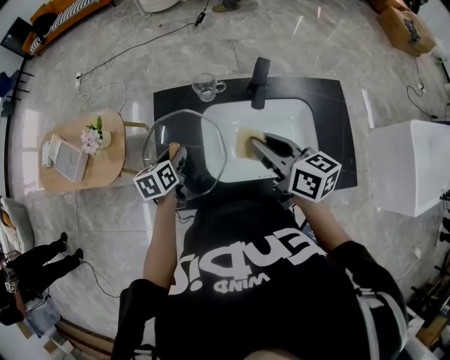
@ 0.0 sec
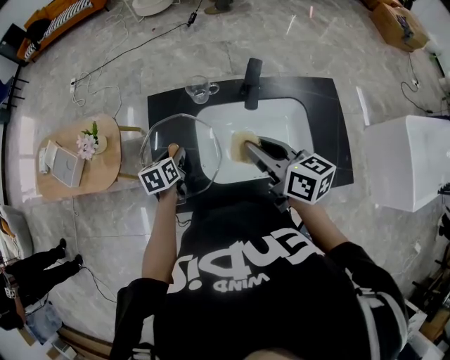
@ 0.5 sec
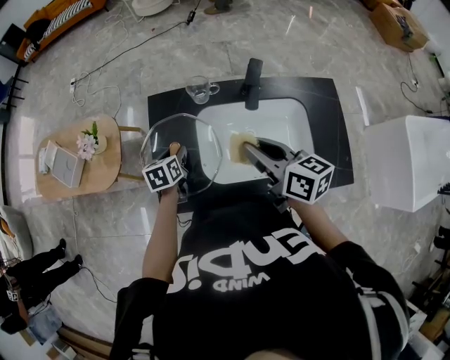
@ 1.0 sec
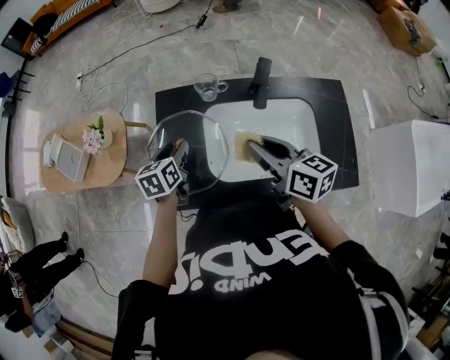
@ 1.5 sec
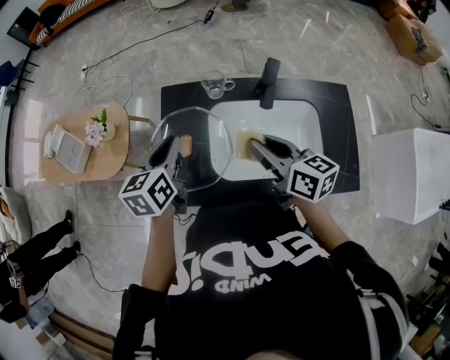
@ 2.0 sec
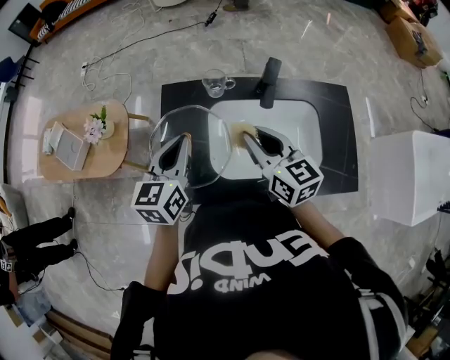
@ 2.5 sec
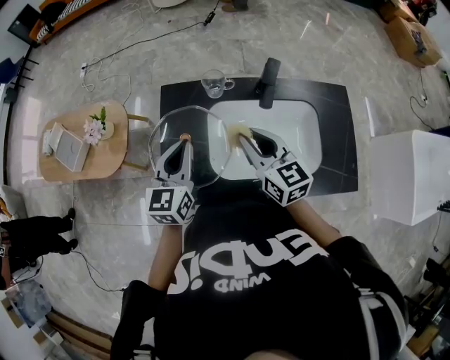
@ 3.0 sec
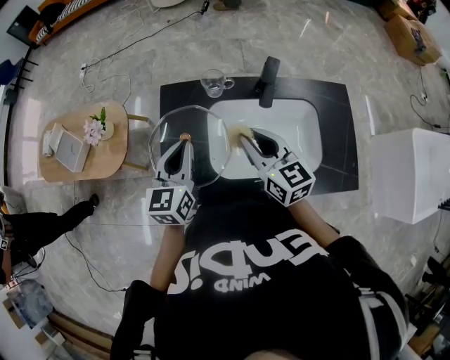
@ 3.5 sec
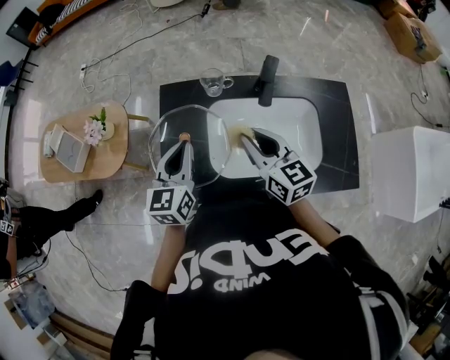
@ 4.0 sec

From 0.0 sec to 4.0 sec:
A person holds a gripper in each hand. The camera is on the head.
From 0.0 sec to 2.0 sec: The left gripper heads upward, covering roughly 15 cm, and closes up.
From 2.0 sec to 4.0 sec: The right gripper swivels roughly 20 degrees.

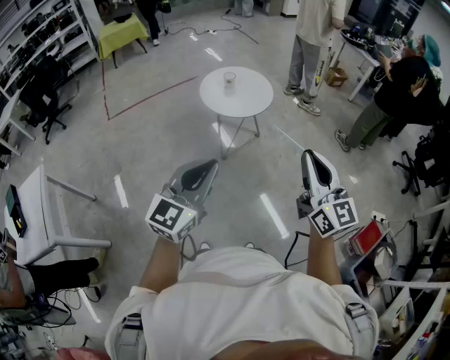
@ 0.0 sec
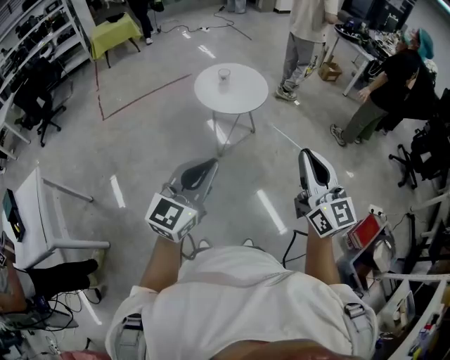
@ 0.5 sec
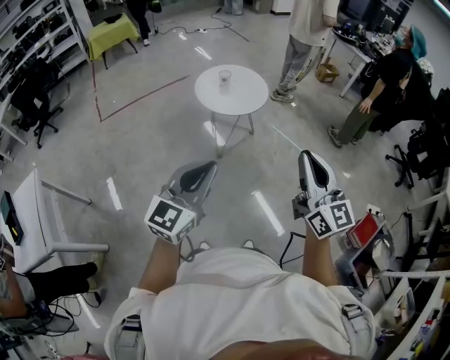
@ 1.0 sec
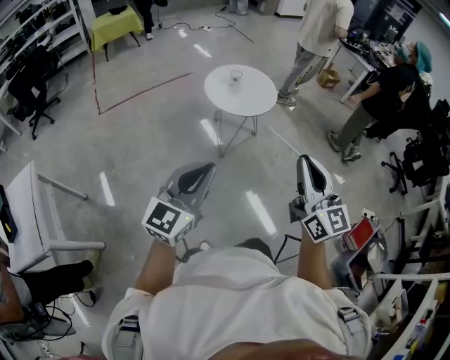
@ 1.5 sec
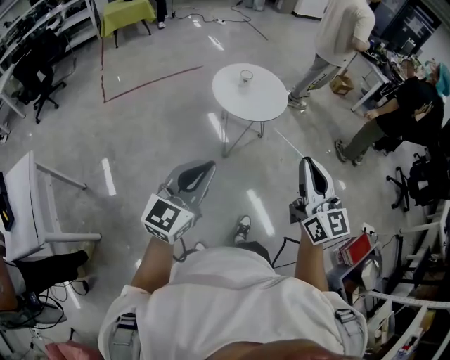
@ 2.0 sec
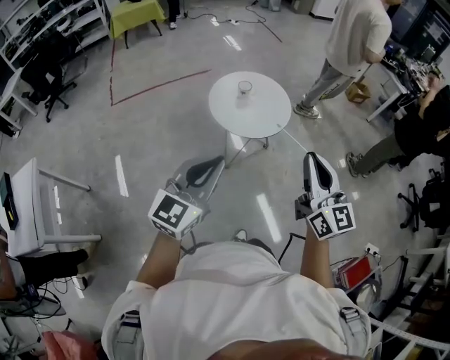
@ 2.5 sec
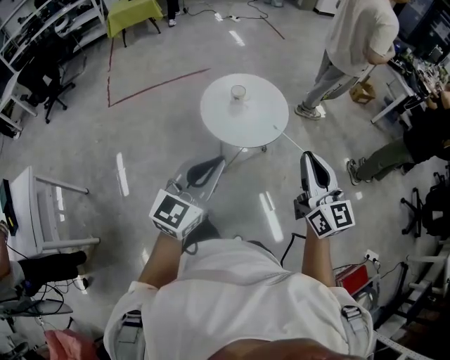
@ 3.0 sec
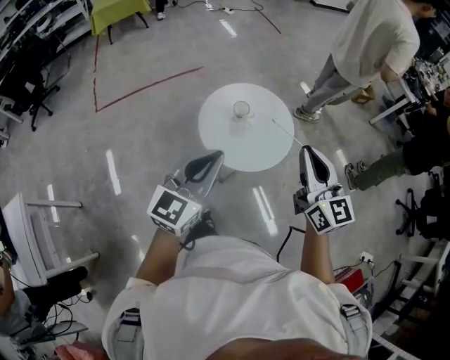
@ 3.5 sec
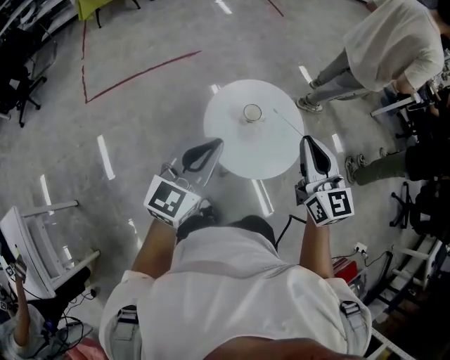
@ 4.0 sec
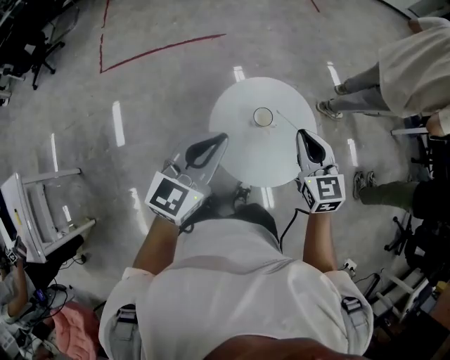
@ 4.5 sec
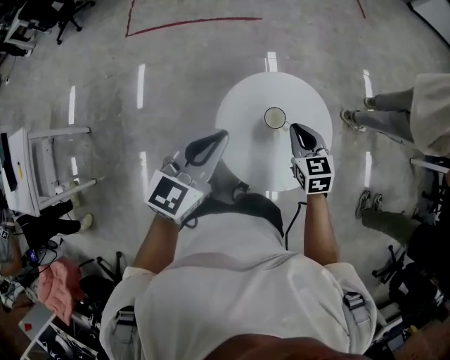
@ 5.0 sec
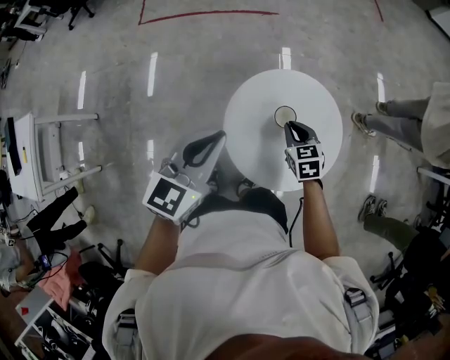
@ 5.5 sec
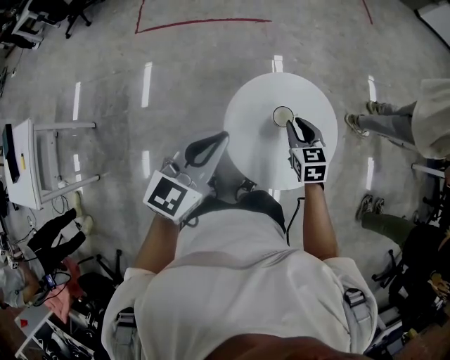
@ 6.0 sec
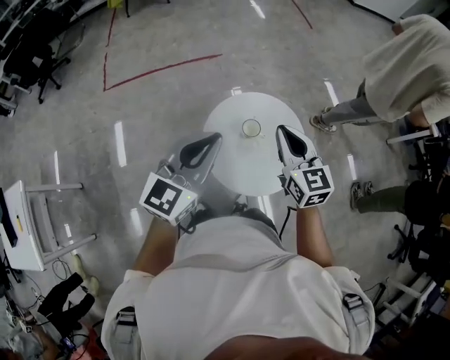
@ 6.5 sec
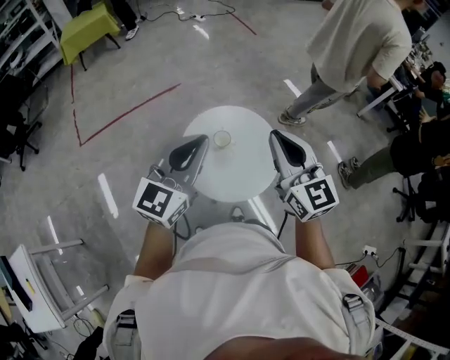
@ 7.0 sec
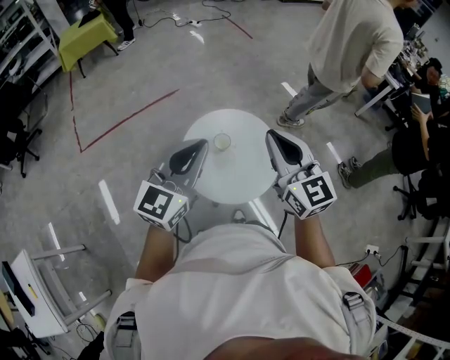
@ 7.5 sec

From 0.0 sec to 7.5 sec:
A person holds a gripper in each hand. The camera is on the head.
From 0.0 sec to 2.0 sec: Both grippers move to the left and forward, approximately 15 cm.
From 2.0 sec to 4.0 sec: The pair of grippers is taken forward, roughly 60 cm.
From 4.0 sec to 5.5 sec: The left gripper moves some 15 cm, and swivels approximately 30 degrees. The right gripper is displaced downward by some 30 cm, and angles its fingers downward, by about 40 degrees.
From 5.5 sec to 7.5 sec: The left gripper goes roughly 15 cm upward, and swivels about 40 degrees. Meanwhile the right gripper heads upward, covering about 40 cm, and angles its fingers upward, by approximately 40 degrees.

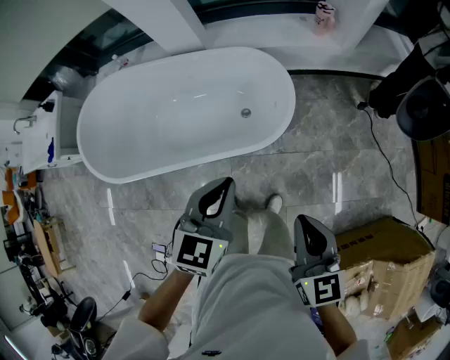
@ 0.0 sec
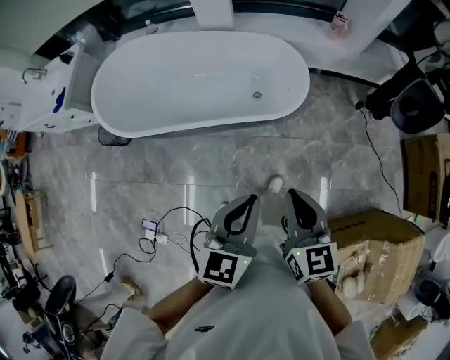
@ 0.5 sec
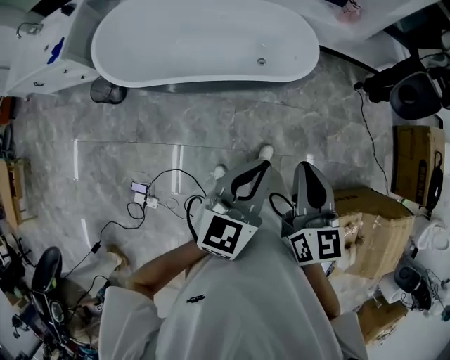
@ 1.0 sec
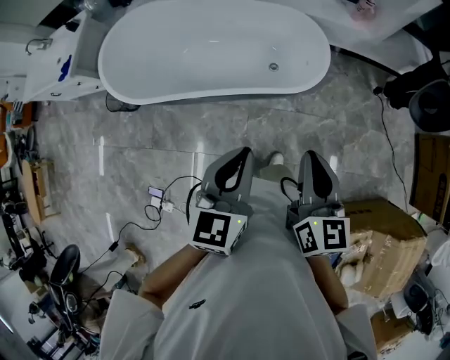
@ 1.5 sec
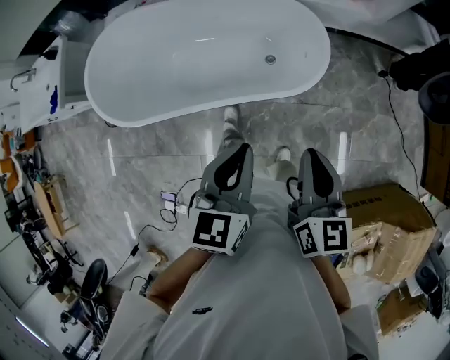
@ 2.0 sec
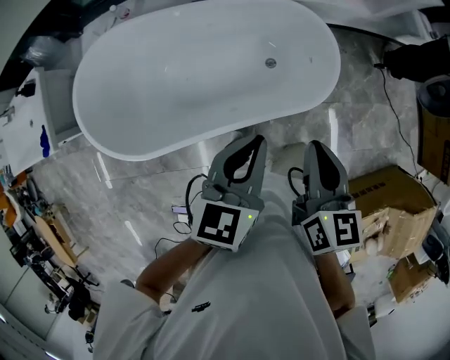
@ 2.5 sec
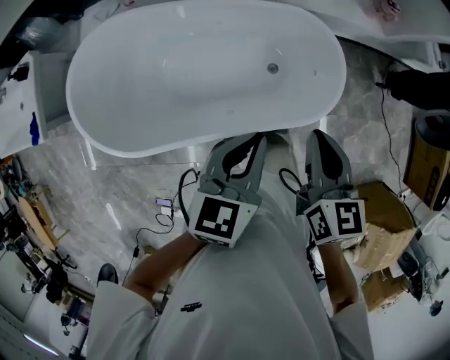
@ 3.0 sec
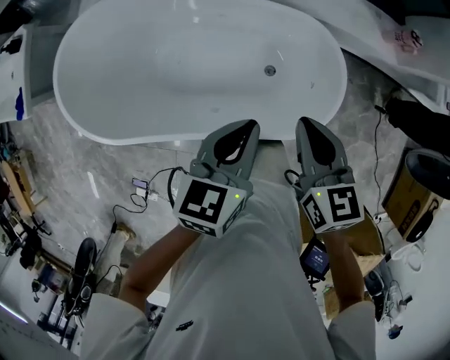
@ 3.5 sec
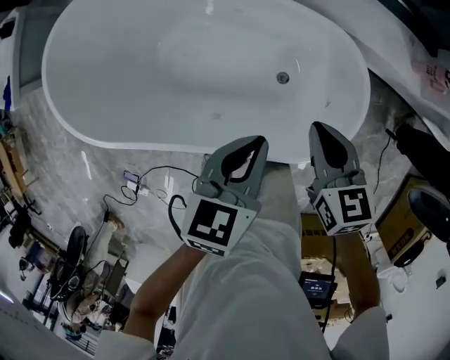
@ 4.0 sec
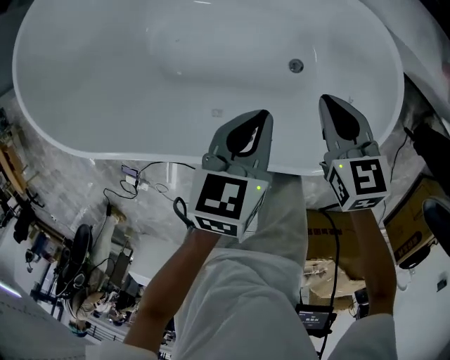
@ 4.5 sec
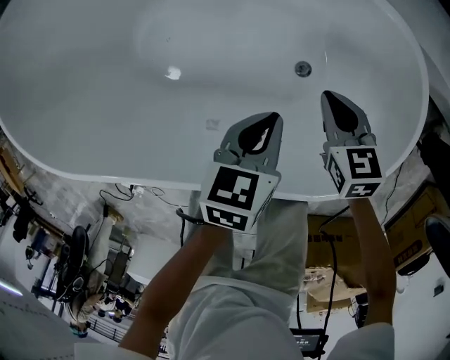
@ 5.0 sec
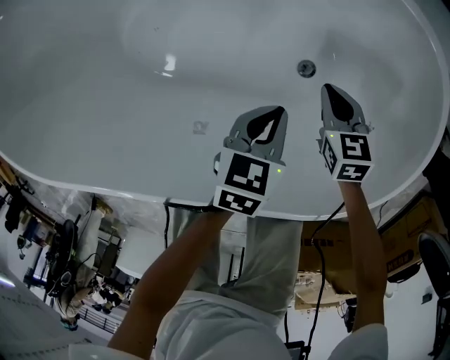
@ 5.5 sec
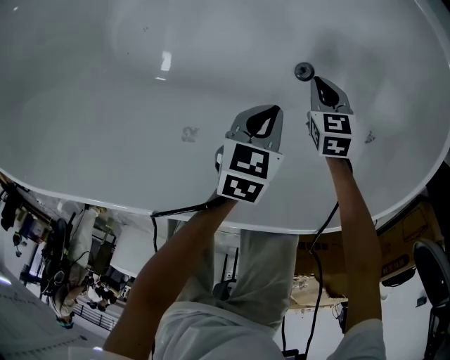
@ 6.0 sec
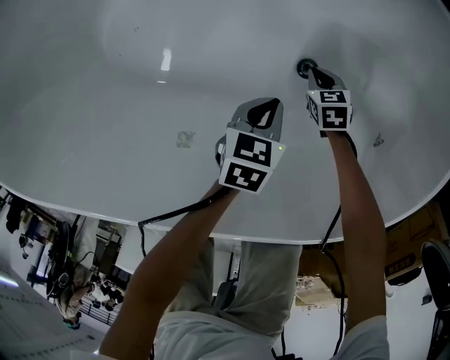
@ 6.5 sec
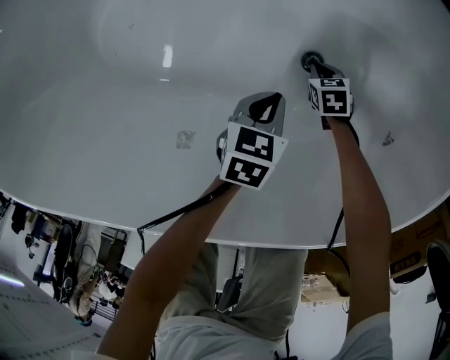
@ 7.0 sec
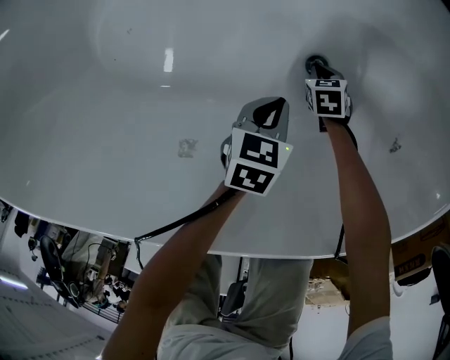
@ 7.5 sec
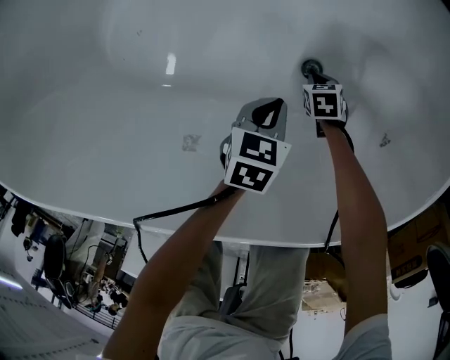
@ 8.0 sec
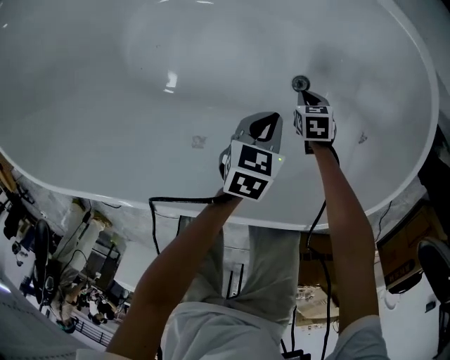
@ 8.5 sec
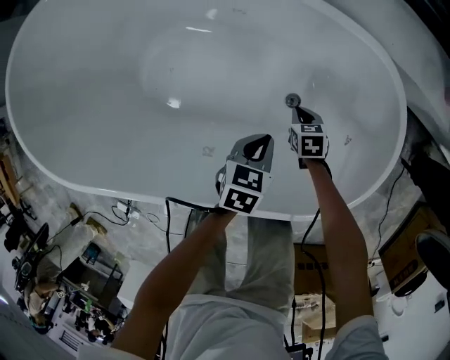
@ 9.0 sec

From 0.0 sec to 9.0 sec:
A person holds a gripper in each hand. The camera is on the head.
From 0.0 sec to 2.0 sec: The grippers both shift to the left by roughly 15 cm. The left gripper moves about 30 cm backward and comes back. The right gripper reaches some 25 cm backward, then returns.
From 2.0 sec to 4.5 sec: The right gripper shifts by about 60 cm, and rotates roughly 50 degrees. Meanwhile the left gripper shifts by approximately 50 cm, and swivels about 30 degrees.
From 4.5 sec to 7.0 sec: The grippers both shift downward by about 50 cm. The right gripper swivels about 30 degrees.
From 7.0 sec to 9.0 sec: Both grippers travel together upward, approximately 20 cm.

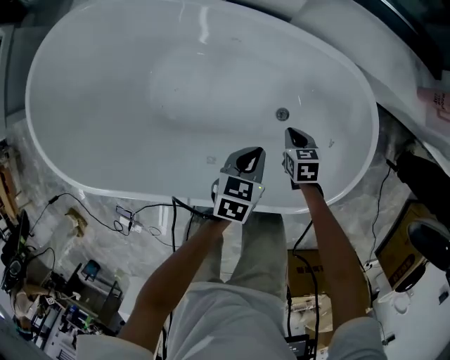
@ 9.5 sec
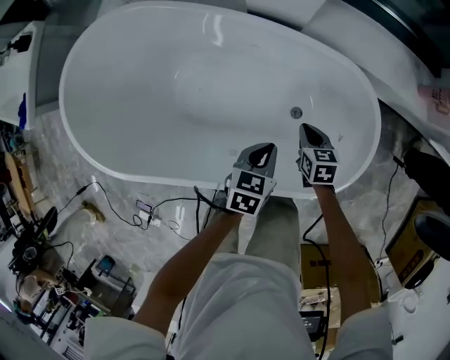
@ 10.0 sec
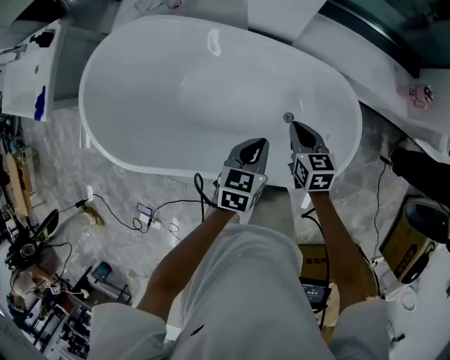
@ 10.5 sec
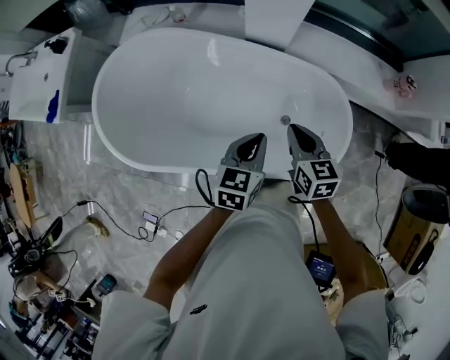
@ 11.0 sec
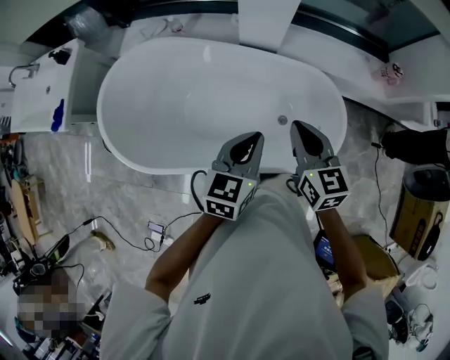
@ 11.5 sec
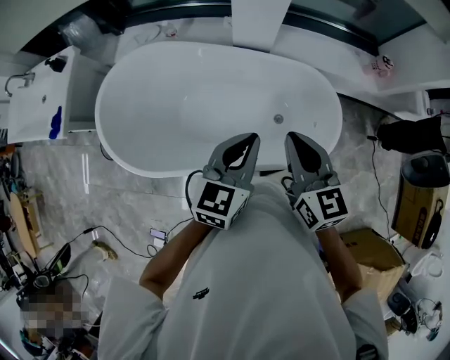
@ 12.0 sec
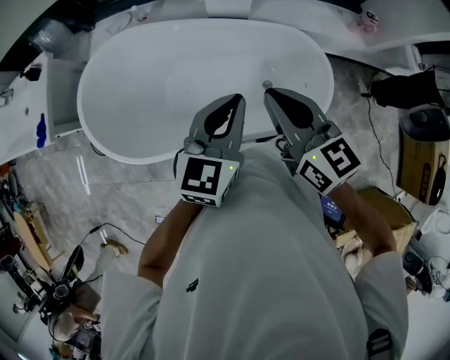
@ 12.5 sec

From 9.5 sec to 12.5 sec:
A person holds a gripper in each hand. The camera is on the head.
From 9.5 sec to 11.0 sec: The two grippers go roughly 35 cm upward. The right gripper changes its angle by approximately 30 degrees.
From 11.0 sec to 12.5 sec: The left gripper goes some 15 cm upward, and swivels approximately 20 degrees. The right gripper travels upward, to the left and backward by roughly 25 cm.

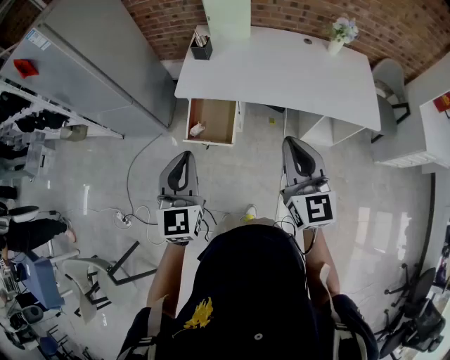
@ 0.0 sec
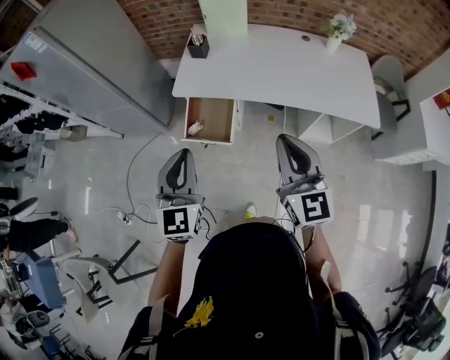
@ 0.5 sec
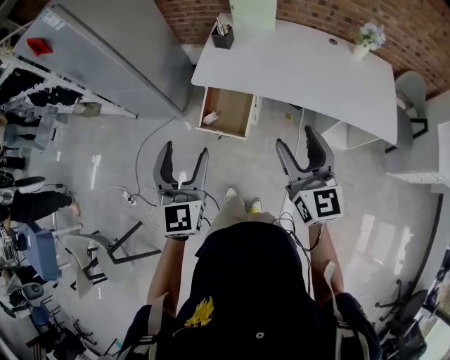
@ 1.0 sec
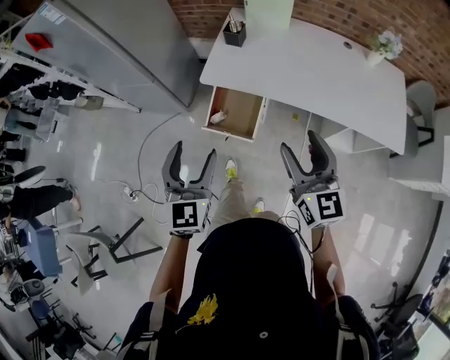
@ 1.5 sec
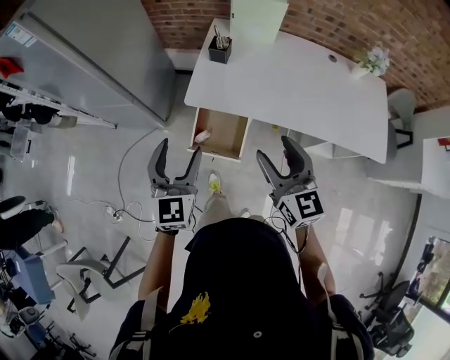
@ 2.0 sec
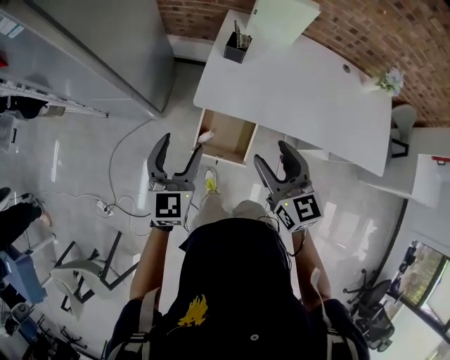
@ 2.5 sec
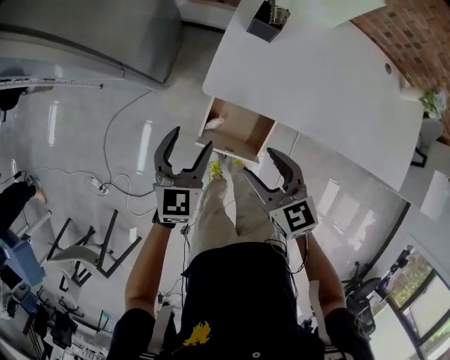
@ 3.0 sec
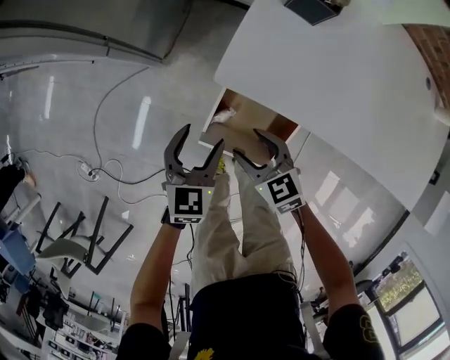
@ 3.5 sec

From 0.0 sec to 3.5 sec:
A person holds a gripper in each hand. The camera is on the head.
From 0.0 sec to 2.0 sec: The grippers both shift forward and to the left by approximately 20 cm. The right gripper opens. The left gripper opens.
From 2.0 sec to 3.5 sec: The two grippers go approximately 50 cm downward and forward. The left gripper changes its angle by roughly 30 degrees. The right gripper angles its fingers downward, by roughly 30 degrees.
